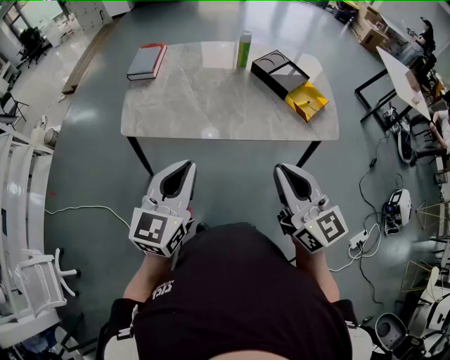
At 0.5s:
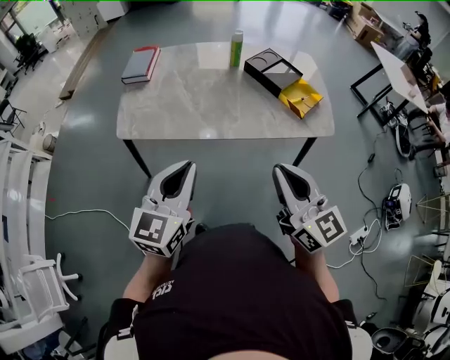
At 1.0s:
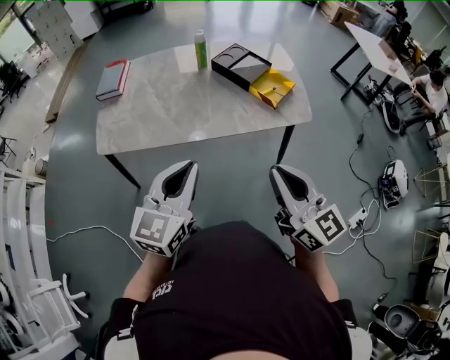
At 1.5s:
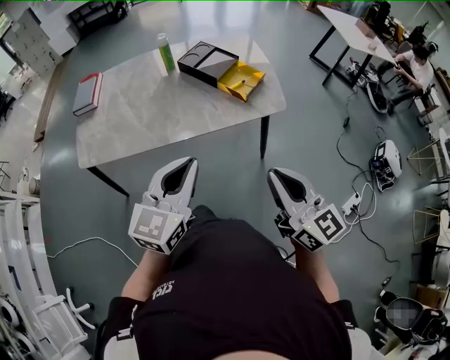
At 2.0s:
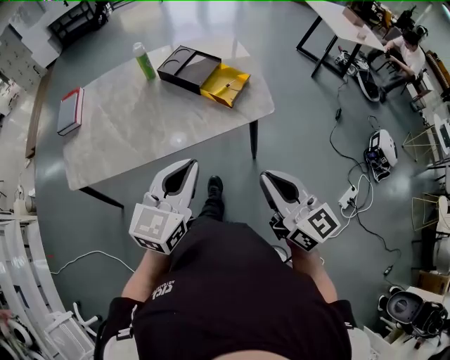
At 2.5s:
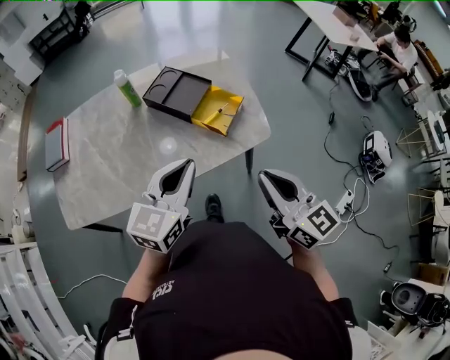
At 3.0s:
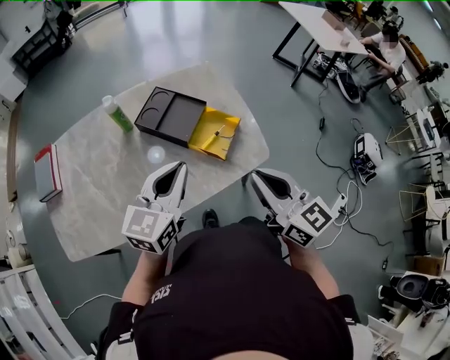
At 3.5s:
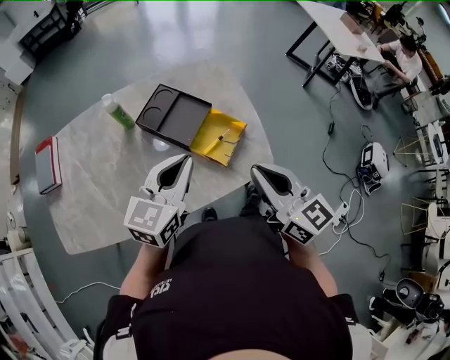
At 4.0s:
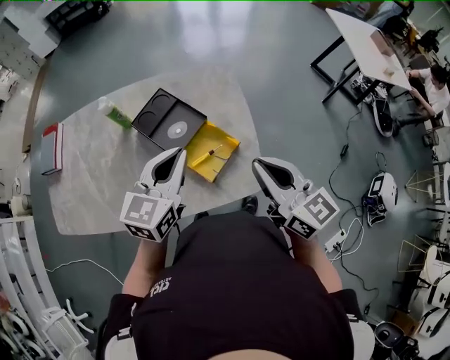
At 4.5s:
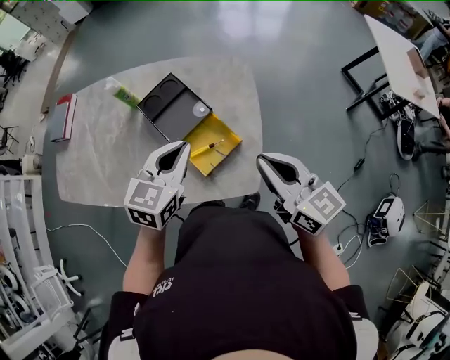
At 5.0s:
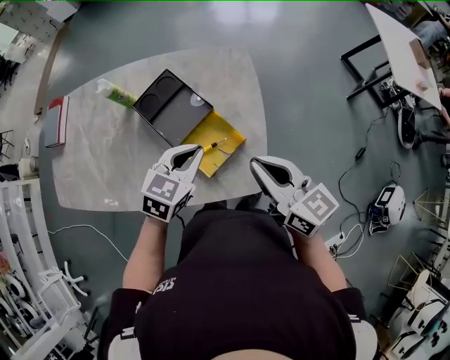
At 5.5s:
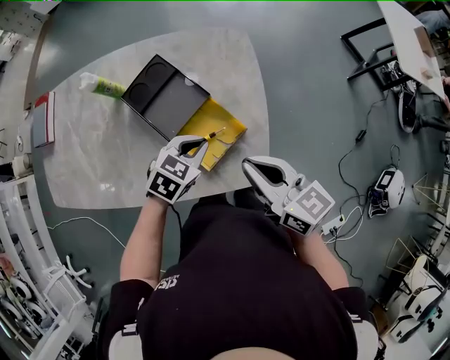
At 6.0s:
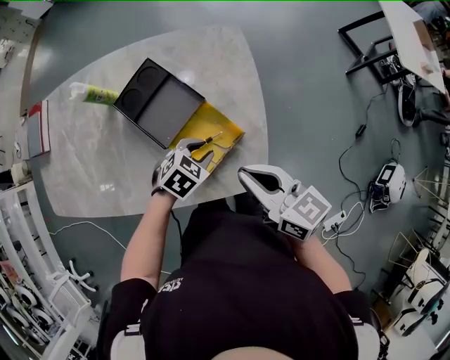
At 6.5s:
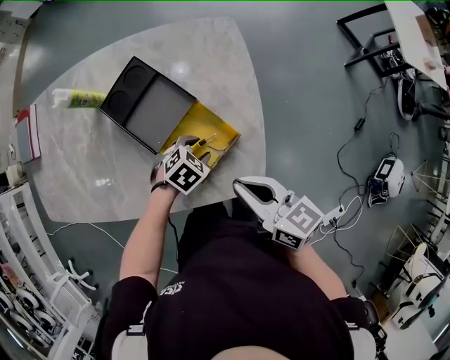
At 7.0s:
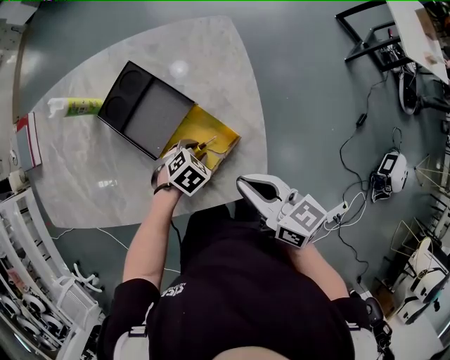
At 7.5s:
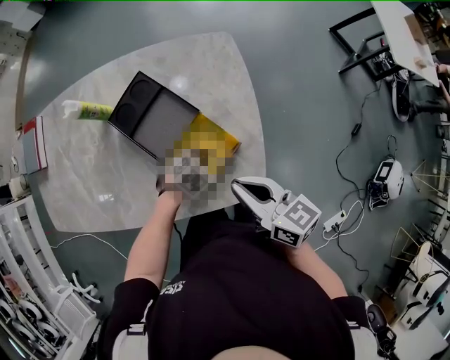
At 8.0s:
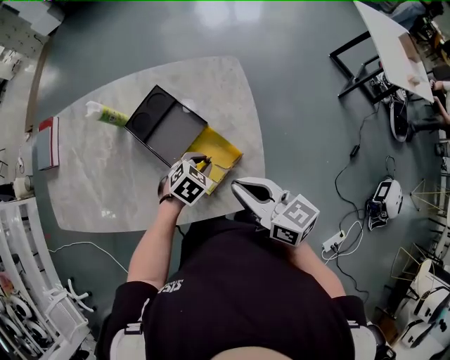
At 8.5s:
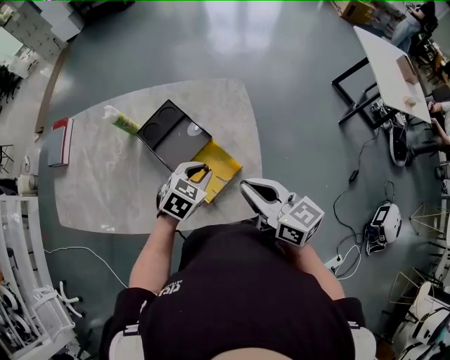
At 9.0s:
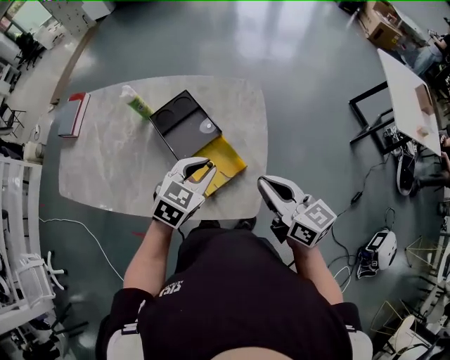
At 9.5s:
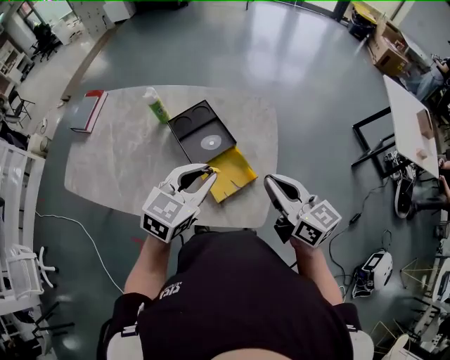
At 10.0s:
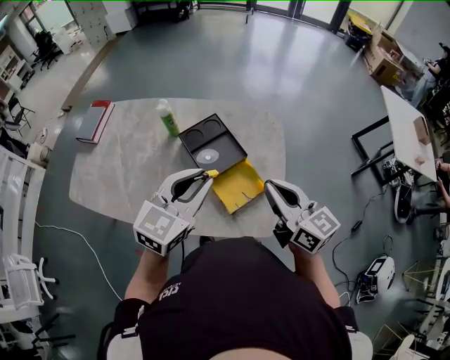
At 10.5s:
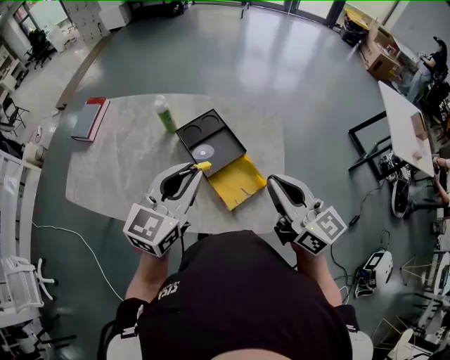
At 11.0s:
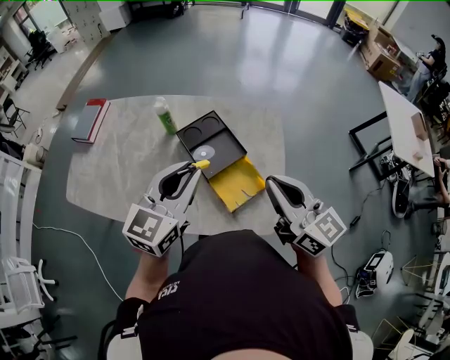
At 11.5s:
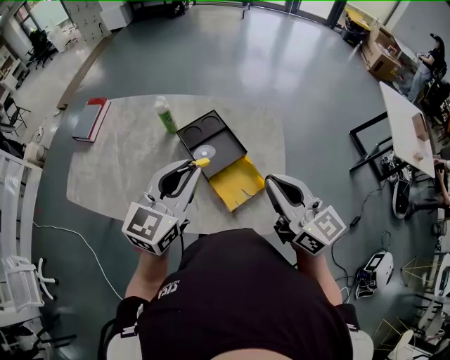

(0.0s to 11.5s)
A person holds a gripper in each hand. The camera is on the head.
0.0s - 2.0s: The grippers both shift to the right by roughly 25 cm. The left gripper swivels about 20 degrees.
2.0s - 4.0s: Both grippers travel together forward, roughly 40 cm.
4.0s - 6.0s: The right gripper shifts approximately 10 cm downward, and changes its angle by approximately 20 degrees, while the left gripper is displaced downward by approximately 25 cm, angles its fingers downward, by roughly 40 degrees, and opens.
6.0s - 7.5s: The left gripper moves downward, roughly 5 cm.
7.5s - 9.5s: The left gripper is displaced upward by roughly 35 cm, and tilts its fingers roughly 50 degrees upward; the right gripper goes roughly 15 cm upward.
9.5s - 11.5s: Both grippers travel together to the left and upward, approximately 10 cm.

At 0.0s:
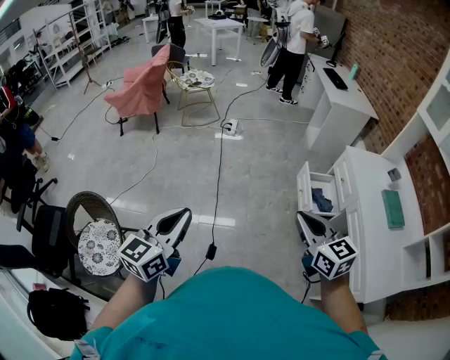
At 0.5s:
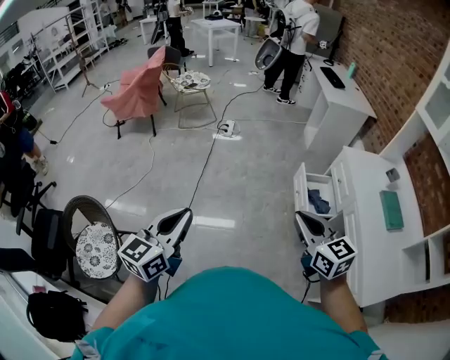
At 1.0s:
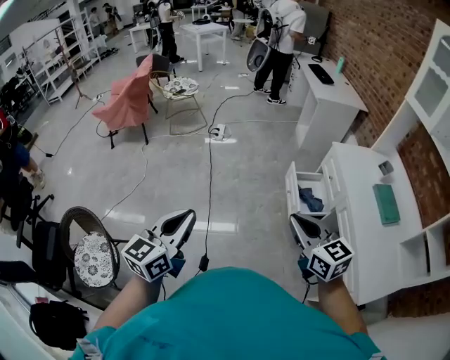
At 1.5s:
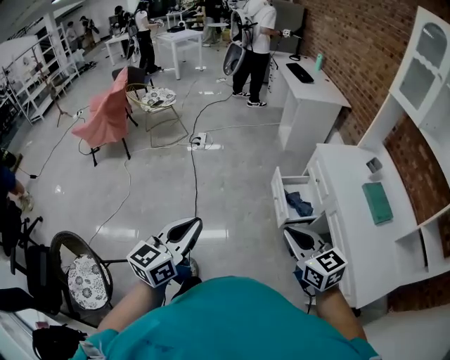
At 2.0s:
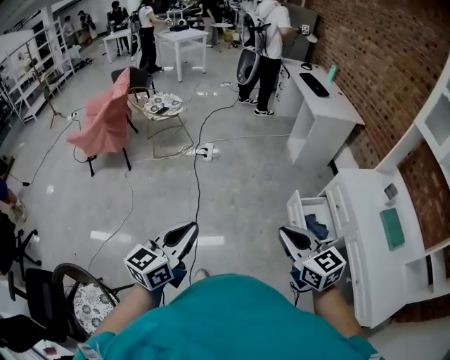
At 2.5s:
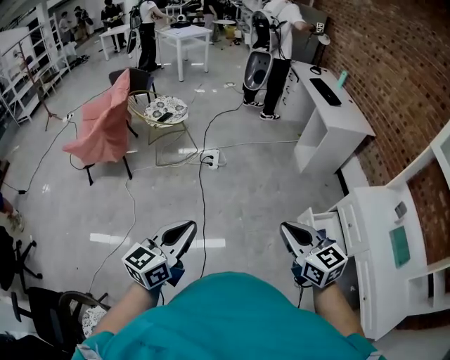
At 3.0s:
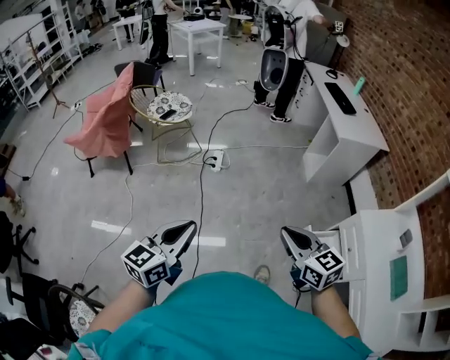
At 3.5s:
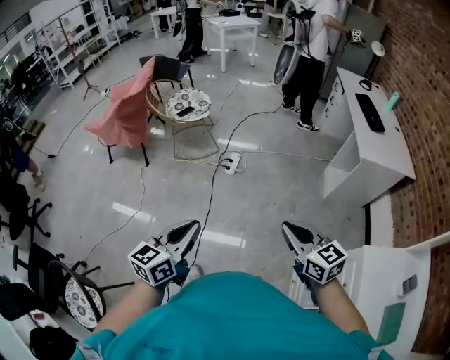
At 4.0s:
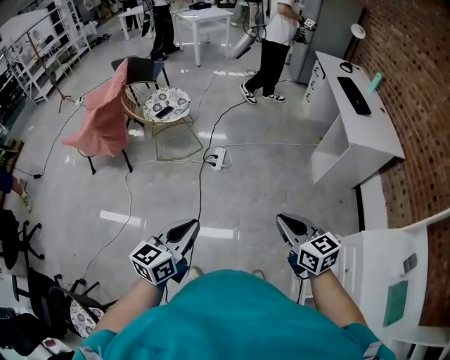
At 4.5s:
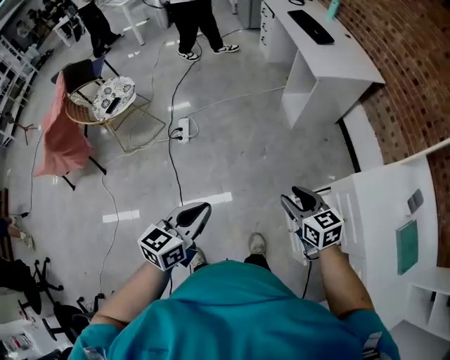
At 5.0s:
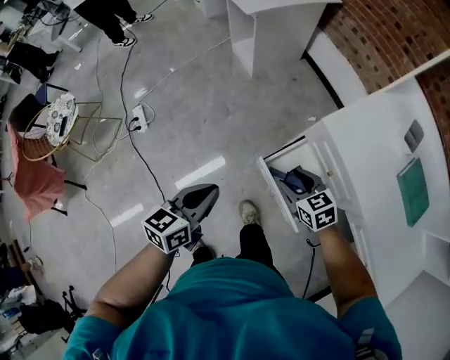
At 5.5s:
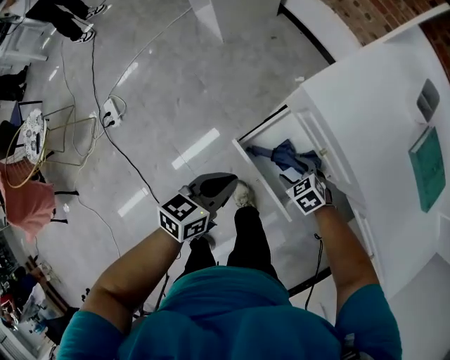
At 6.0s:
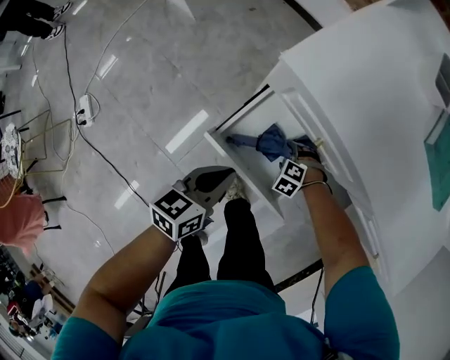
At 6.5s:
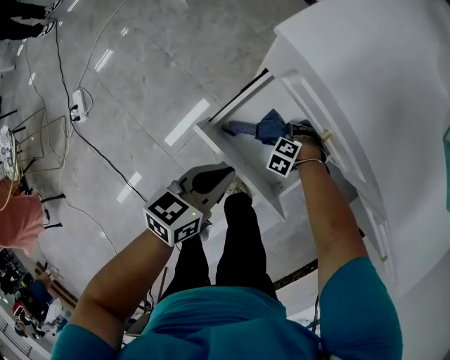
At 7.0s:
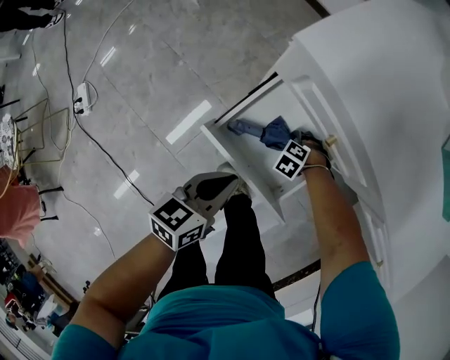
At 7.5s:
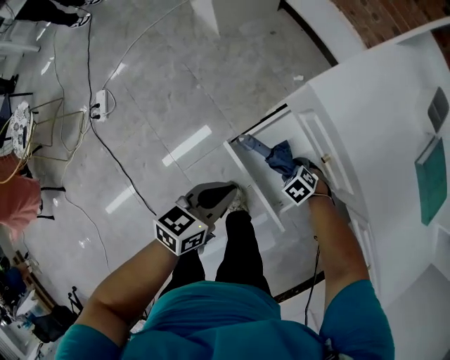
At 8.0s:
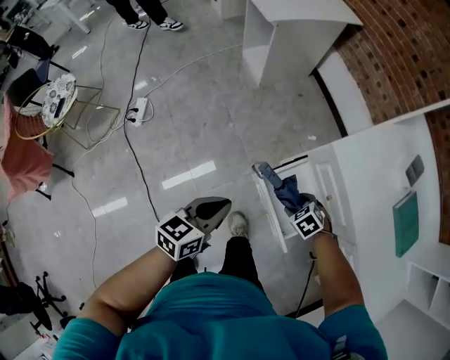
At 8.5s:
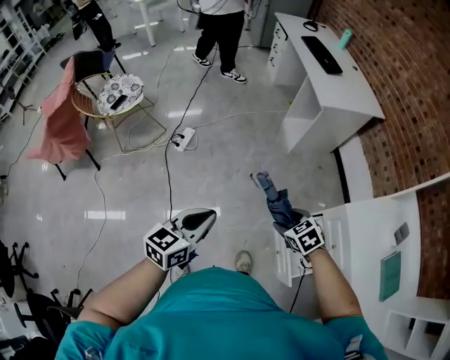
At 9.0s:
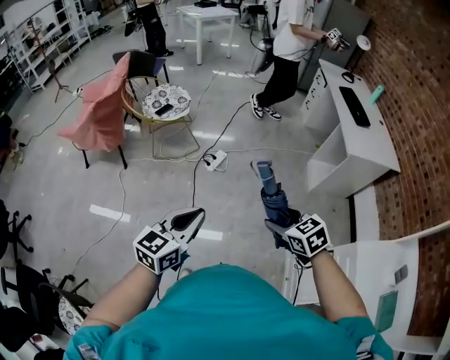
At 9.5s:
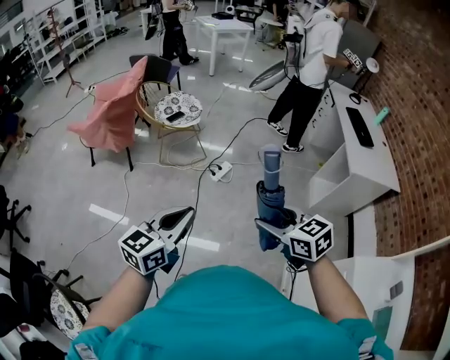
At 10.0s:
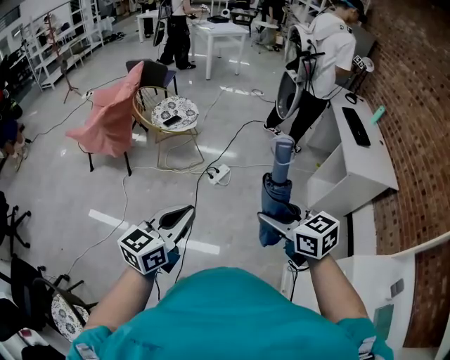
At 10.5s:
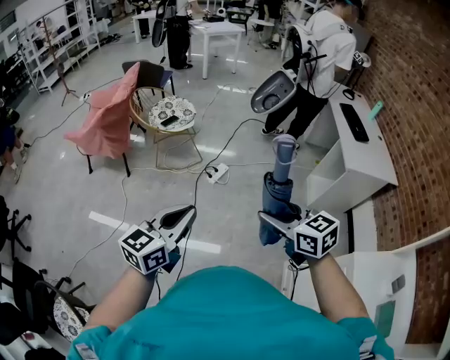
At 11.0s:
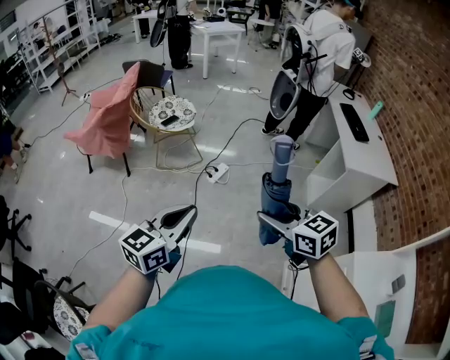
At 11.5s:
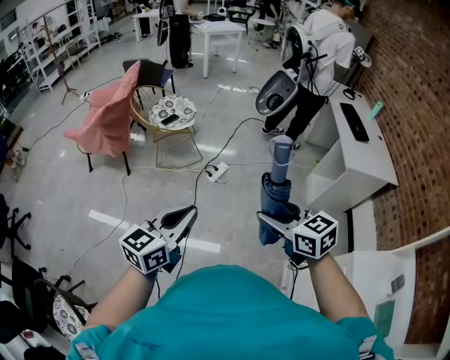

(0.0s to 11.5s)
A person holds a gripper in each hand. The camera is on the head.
0.0s - 2.0s: Both grippers travel together forward, roughly 25 cm.
2.0s - 4.0s: The grippers both shift forward by approximately 40 cm.
4.0s - 6.0s: Both grippers are carried about 50 cm. The left gripper changes its angle by roughly 60 degrees. Meanwhile the right gripper shifts some 60 cm downward, angles its fingers downward, by about 60 degrees, and opens up.
6.0s - 7.5s: The two grippers go some 5 cm upward.
7.5s - 9.5s: Both grippers are carried approximately 60 cm. The right gripper is displaced upward by about 60 cm, and points its fingers roughly 50 degrees further upward; the left gripper changes its angle by approximately 60 degrees.
9.5s - 11.5s: The grippers move only a little.

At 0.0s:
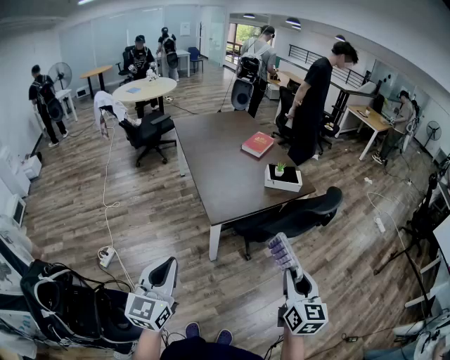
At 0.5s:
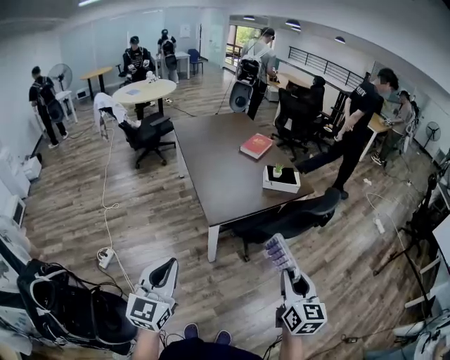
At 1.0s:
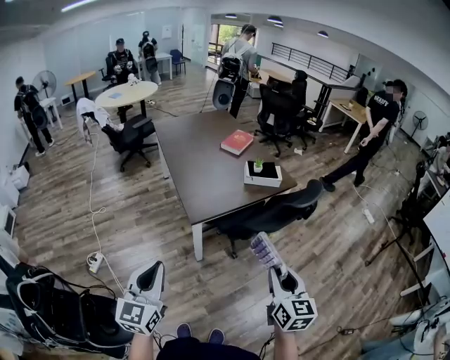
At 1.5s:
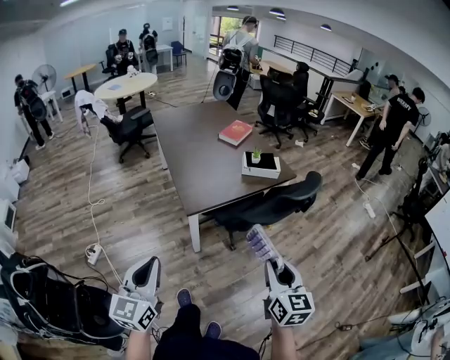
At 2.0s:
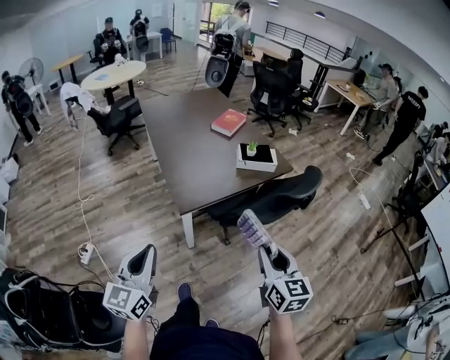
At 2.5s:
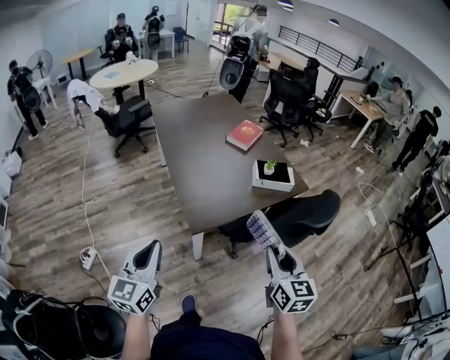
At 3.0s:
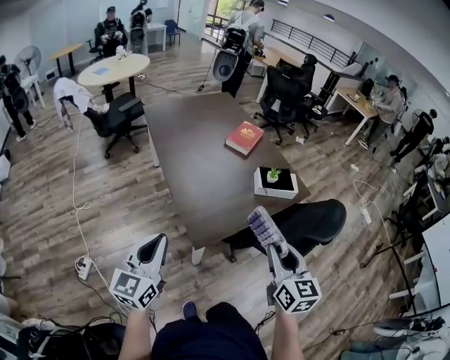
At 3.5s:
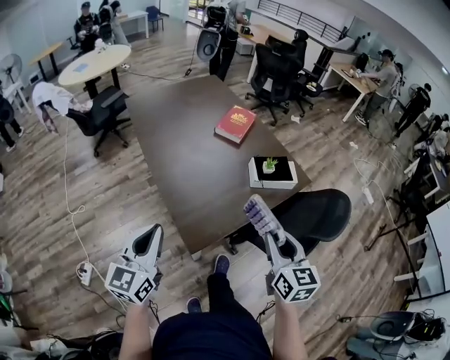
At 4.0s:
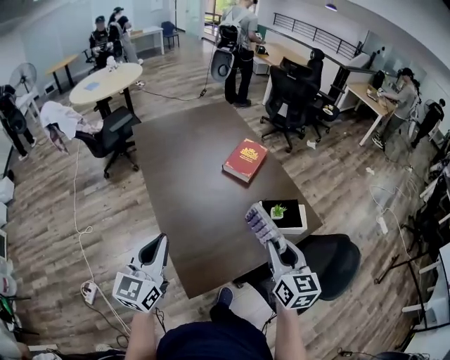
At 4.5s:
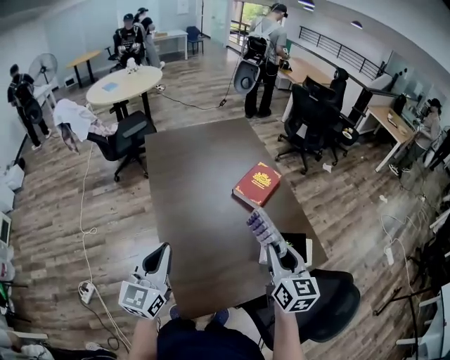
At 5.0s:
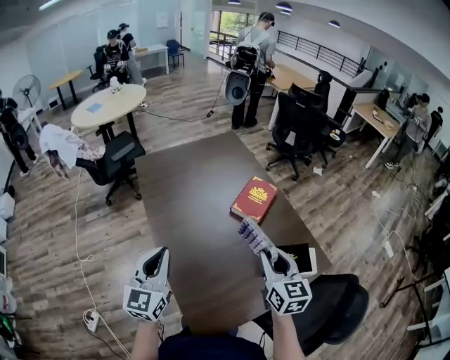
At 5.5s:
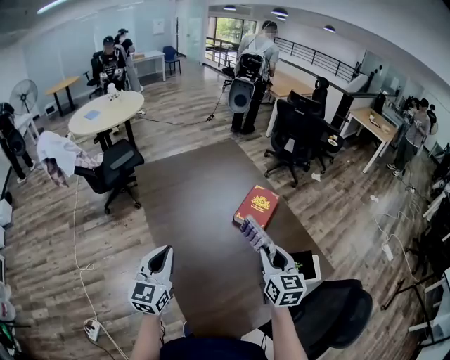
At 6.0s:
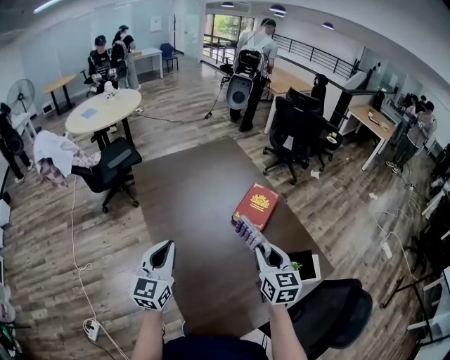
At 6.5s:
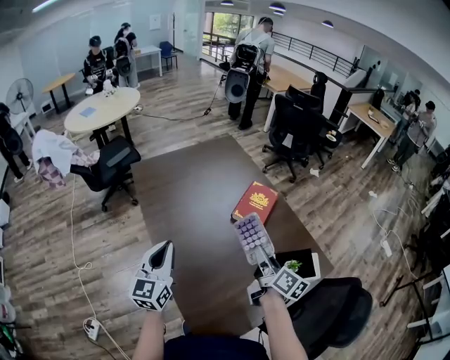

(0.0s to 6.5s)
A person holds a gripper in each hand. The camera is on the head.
0.0s - 2.0s: The right gripper shifts approximately 10 cm forward. Meanwhile the left gripper heads forward and to the right, covering roughly 10 cm.
2.0s - 4.5s: The pair of grippers is taken forward, about 60 cm.
4.5s - 6.5s: The right gripper is displaced forward, to the left and downward by some 15 cm, and twists about 40 degrees clockwise, seen from behind, while the left gripper moves forward and to the left, about 15 cm.
